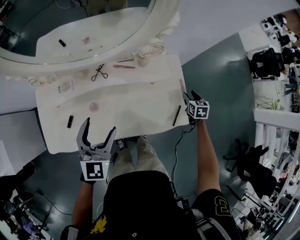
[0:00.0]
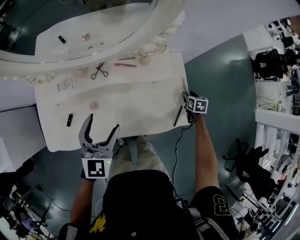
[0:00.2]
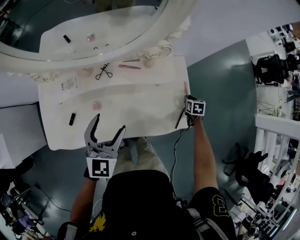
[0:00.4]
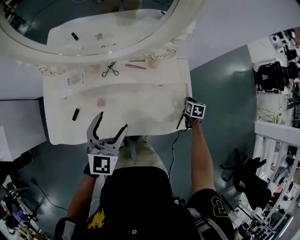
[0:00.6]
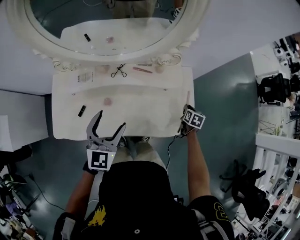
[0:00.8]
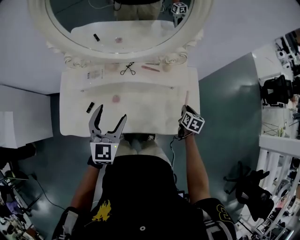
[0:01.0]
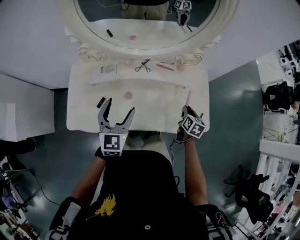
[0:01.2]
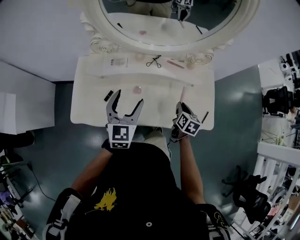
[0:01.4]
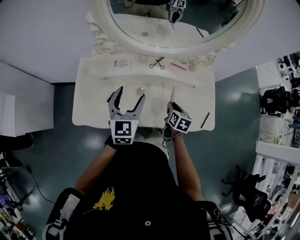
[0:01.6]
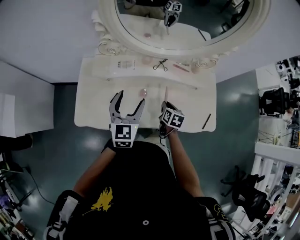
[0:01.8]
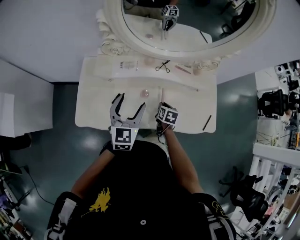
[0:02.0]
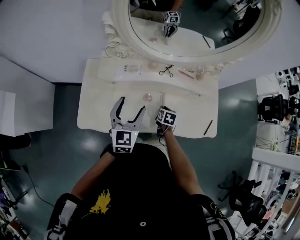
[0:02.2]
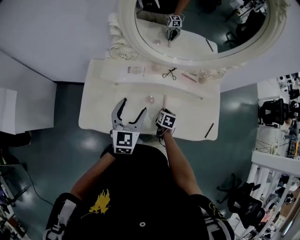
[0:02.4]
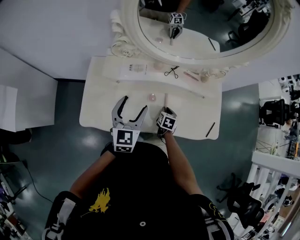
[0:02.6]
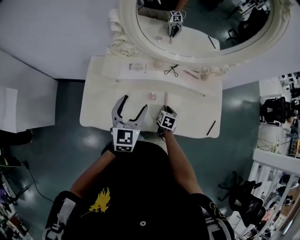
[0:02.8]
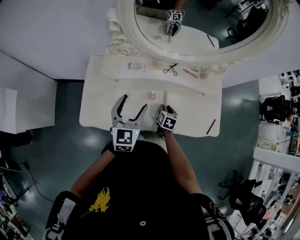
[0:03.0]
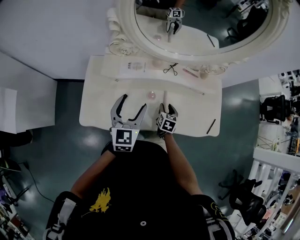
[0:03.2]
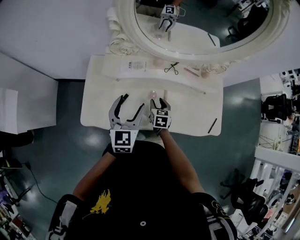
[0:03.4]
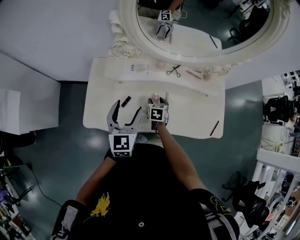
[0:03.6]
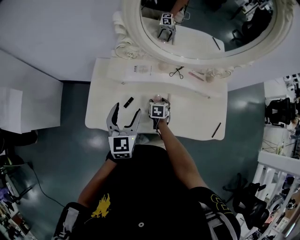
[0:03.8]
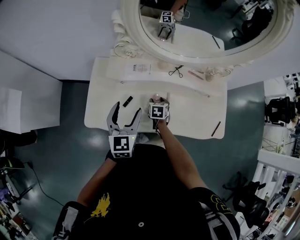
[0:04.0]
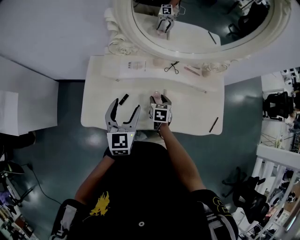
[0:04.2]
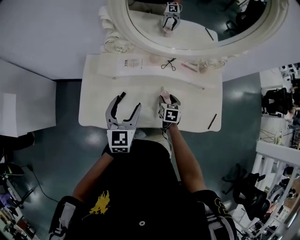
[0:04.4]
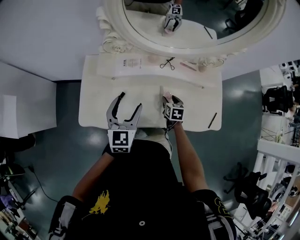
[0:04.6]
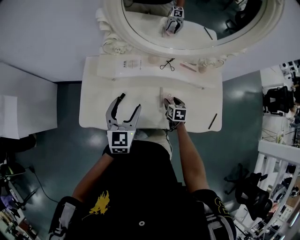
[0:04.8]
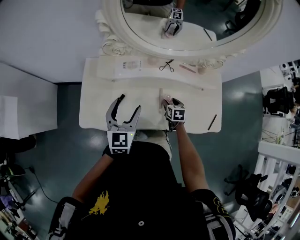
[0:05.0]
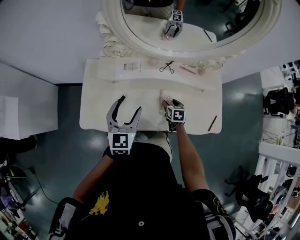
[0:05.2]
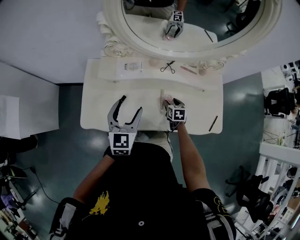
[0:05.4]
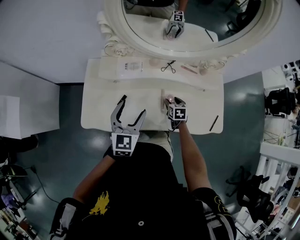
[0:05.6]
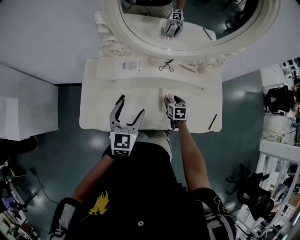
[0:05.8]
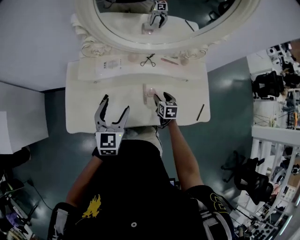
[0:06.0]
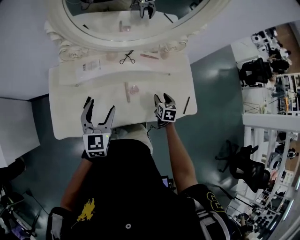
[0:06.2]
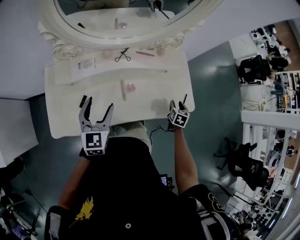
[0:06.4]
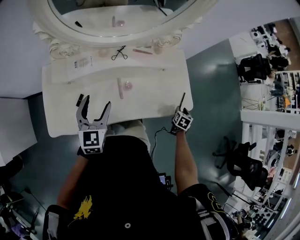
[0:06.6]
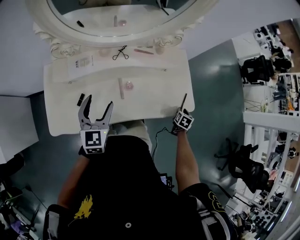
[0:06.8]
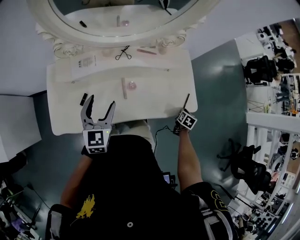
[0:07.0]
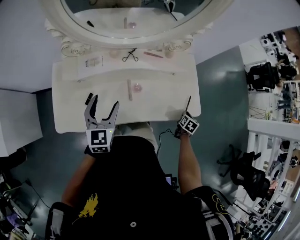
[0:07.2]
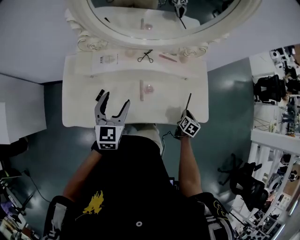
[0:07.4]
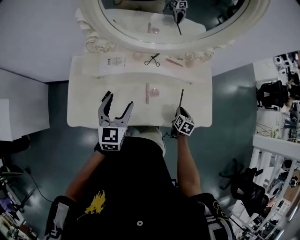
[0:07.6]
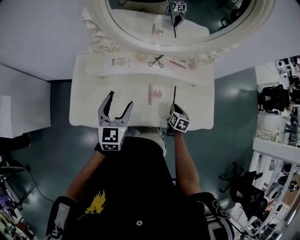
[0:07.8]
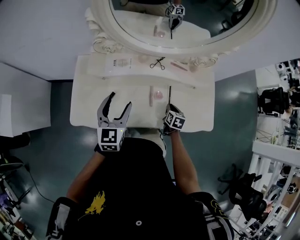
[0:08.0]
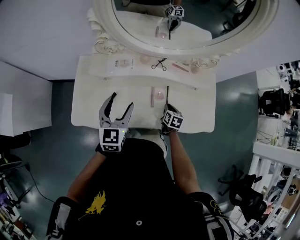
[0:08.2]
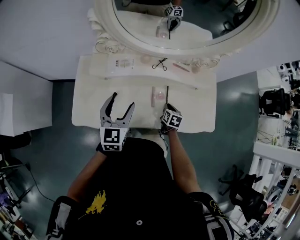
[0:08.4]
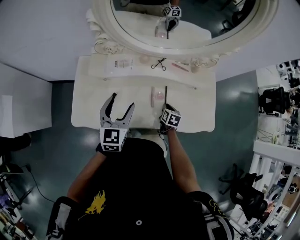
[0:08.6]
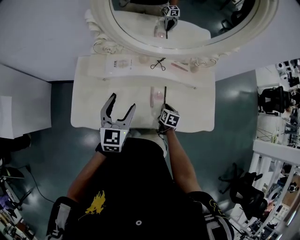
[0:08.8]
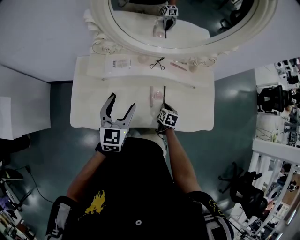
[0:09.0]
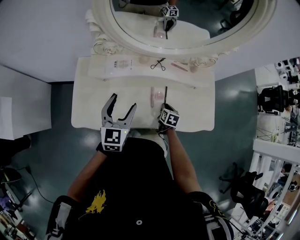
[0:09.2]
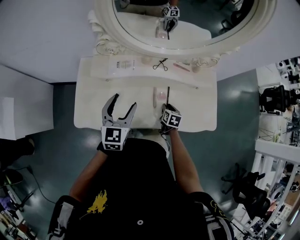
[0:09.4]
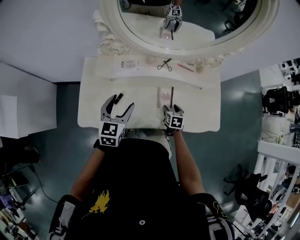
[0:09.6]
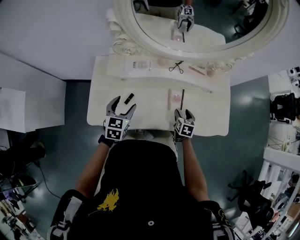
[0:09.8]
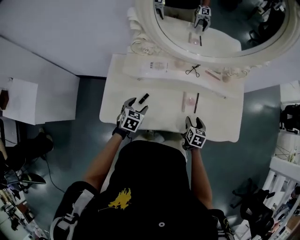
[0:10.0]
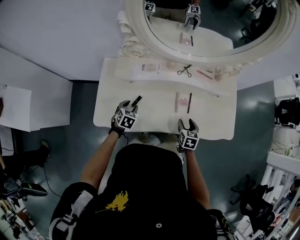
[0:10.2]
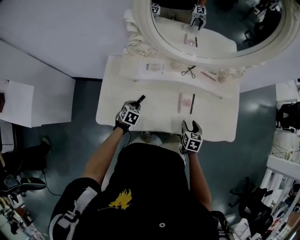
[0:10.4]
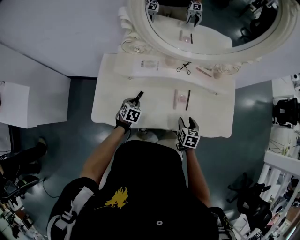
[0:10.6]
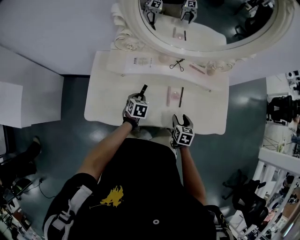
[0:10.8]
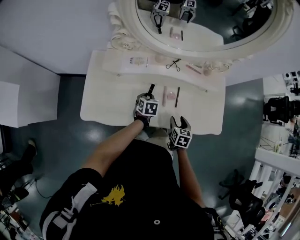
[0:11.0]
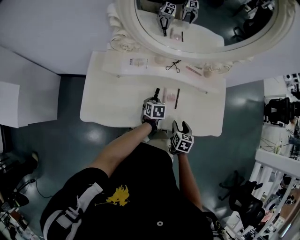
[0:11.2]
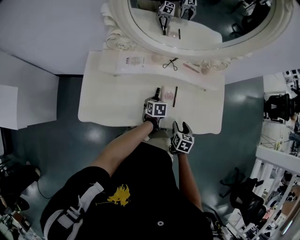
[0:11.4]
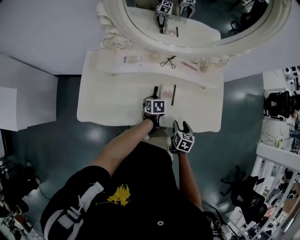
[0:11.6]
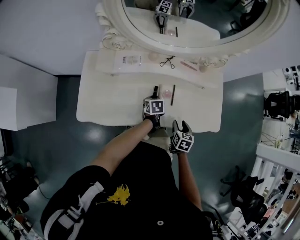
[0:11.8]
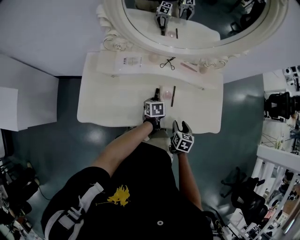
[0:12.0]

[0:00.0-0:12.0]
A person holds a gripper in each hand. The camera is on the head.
0:00.0 to 0:01.6: The left gripper moves to the left, approximately 15 cm; the right gripper is displaced to the left by approximately 35 cm, and closes.
0:01.6 to 0:03.0: The left gripper moves to the left, roughly 5 cm; the right gripper moves downward and to the left, approximately 15 cm, and opens its fingers.
0:03.0 to 0:04.4: The right gripper goes to the left and returns, some 10 cm each way.
0:04.4 to 0:06.0: The right gripper heads to the right, covering roughly 5 cm.
0:06.0 to 0:07.6: The right gripper closes its fingers.
0:07.6 to 0:09.0: The right gripper shifts some 10 cm to the left.
0:09.0 to 0:10.4: The right gripper moves backward, about 5 cm, and opens up, while the left gripper shifts about 25 cm downward, points its fingers some 40 degrees further downward, and closes up.
0:10.4 to 0:12.0: The right gripper shifts some 5 cm to the right; the left gripper goes approximately 20 cm to the right, and rotates roughly 30 degrees.

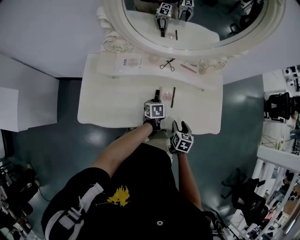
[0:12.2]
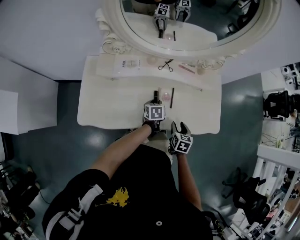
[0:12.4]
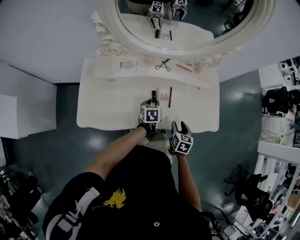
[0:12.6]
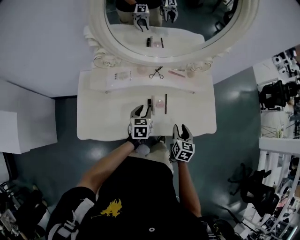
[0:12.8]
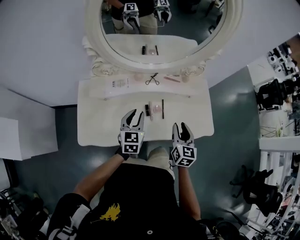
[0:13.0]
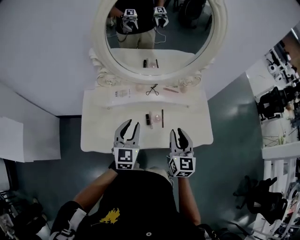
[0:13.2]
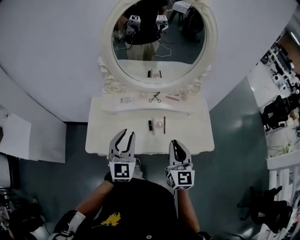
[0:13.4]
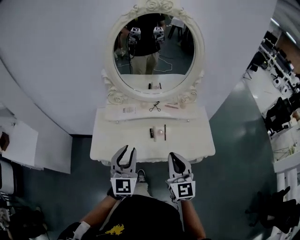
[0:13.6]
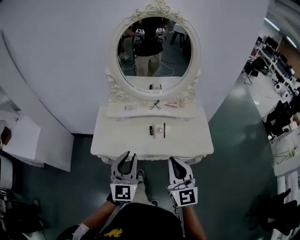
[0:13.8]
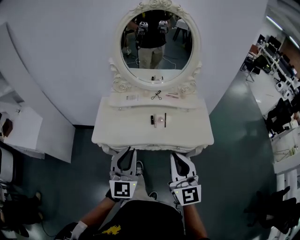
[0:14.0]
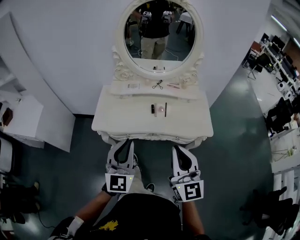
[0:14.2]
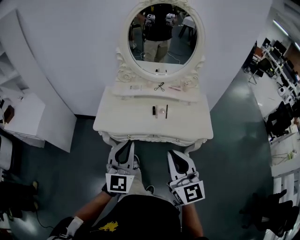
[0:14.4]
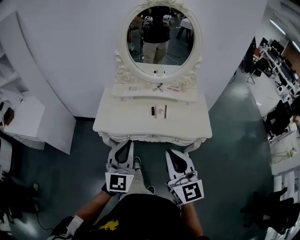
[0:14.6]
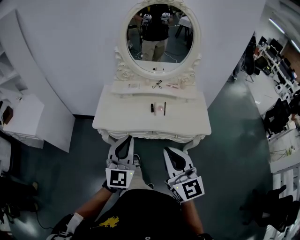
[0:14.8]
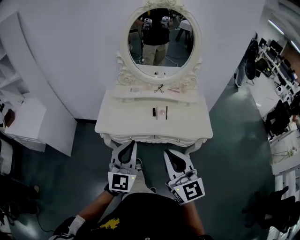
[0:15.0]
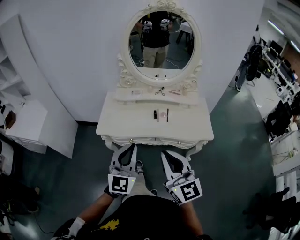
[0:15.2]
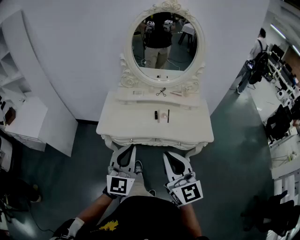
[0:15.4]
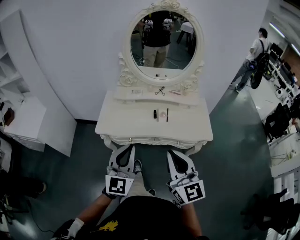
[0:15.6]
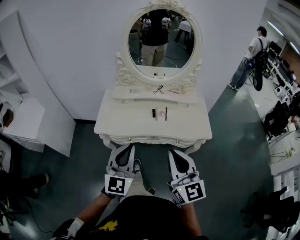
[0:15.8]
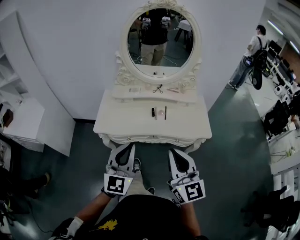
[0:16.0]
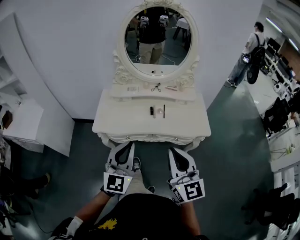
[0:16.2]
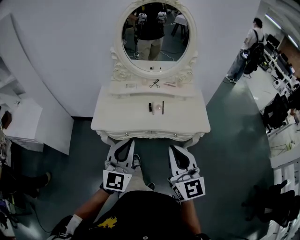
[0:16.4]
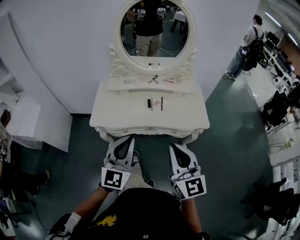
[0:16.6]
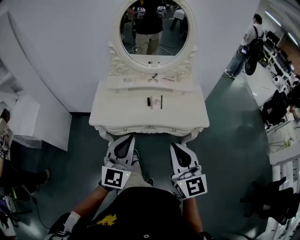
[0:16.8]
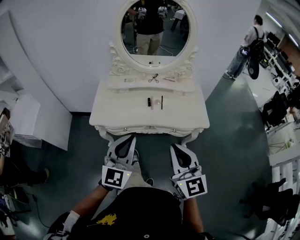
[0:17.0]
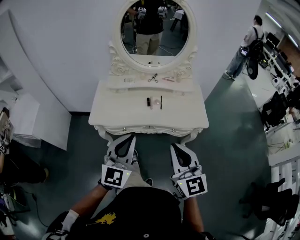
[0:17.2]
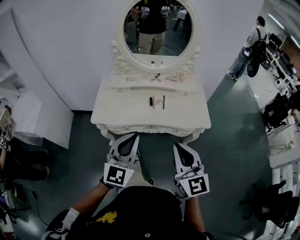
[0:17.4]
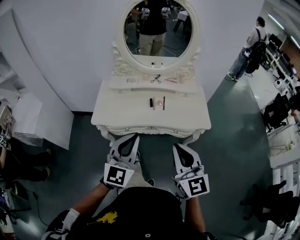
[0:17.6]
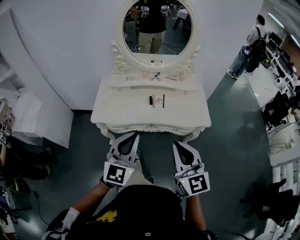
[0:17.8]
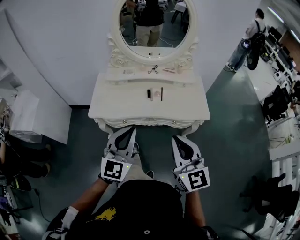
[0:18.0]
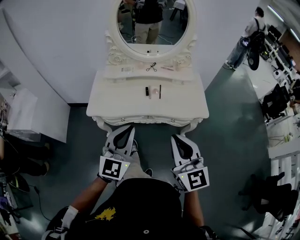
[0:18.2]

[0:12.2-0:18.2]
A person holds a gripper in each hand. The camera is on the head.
0:12.2 to 0:13.8: The grippers both shift upward and backward by some 50 cm. The left gripper angles its fingers upward, by roughly 60 degrees, while the right gripper points its fingers some 50 degrees further upward, and closes its fingers.
0:13.8 to 0:15.2: The left gripper shifts some 15 cm backward. The right gripper travels backward and to the left by some 15 cm.
0:15.2 to 0:16.6: The right gripper moves to the right, some 5 cm.
0:16.6 to 0:18.2: The grippers make only small movements.

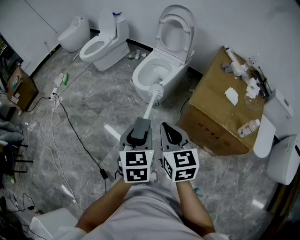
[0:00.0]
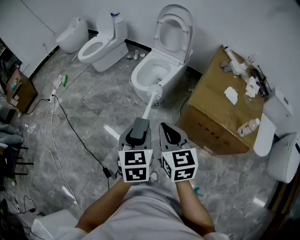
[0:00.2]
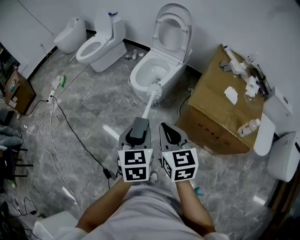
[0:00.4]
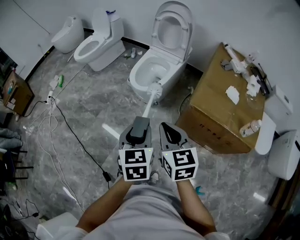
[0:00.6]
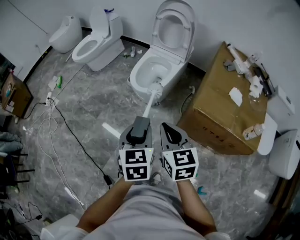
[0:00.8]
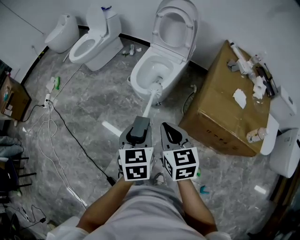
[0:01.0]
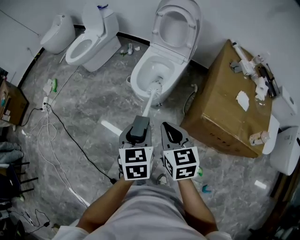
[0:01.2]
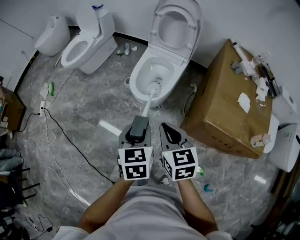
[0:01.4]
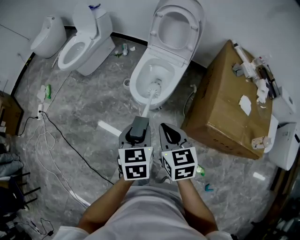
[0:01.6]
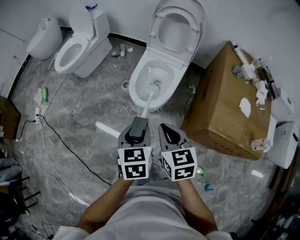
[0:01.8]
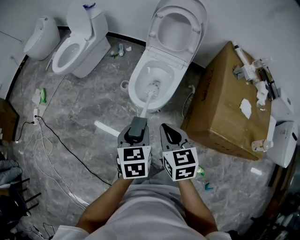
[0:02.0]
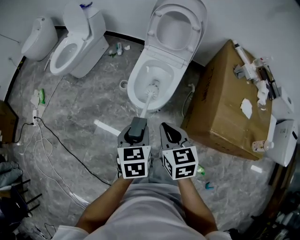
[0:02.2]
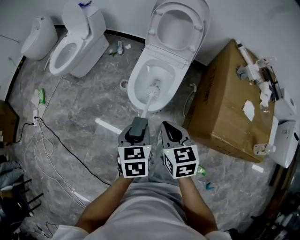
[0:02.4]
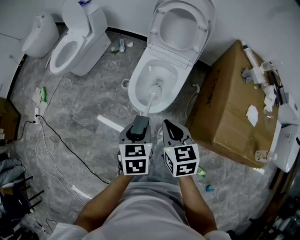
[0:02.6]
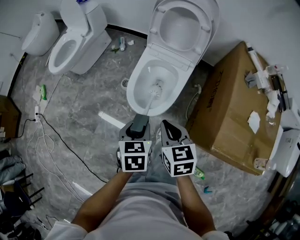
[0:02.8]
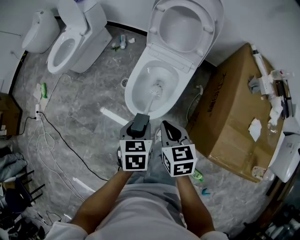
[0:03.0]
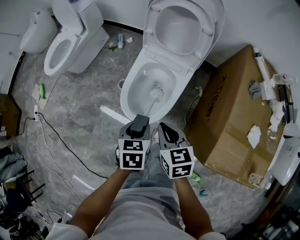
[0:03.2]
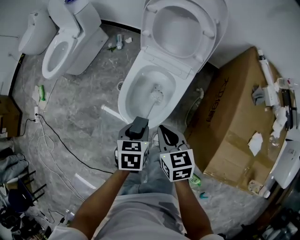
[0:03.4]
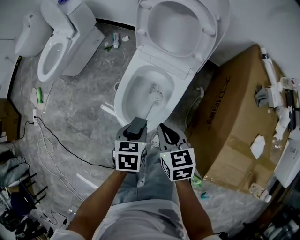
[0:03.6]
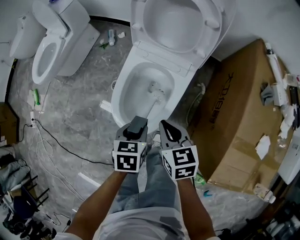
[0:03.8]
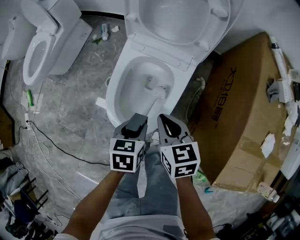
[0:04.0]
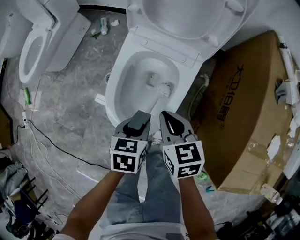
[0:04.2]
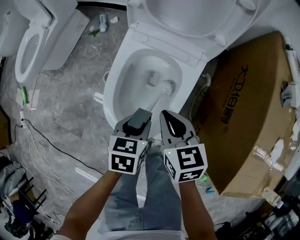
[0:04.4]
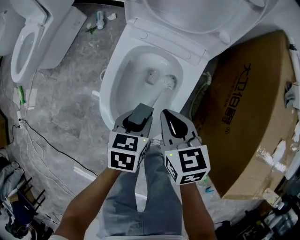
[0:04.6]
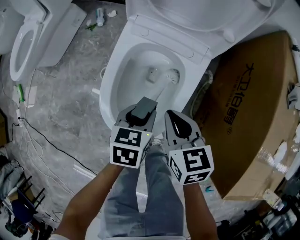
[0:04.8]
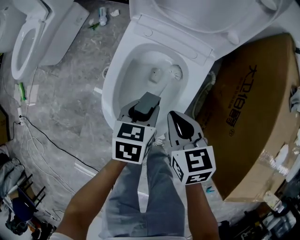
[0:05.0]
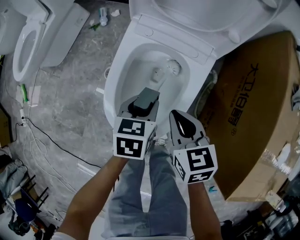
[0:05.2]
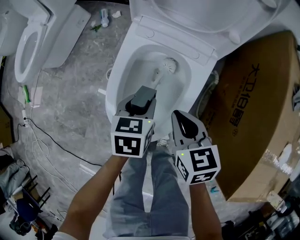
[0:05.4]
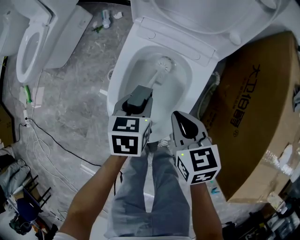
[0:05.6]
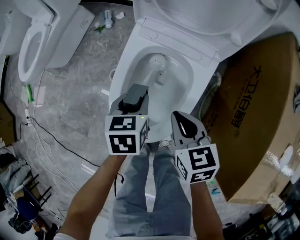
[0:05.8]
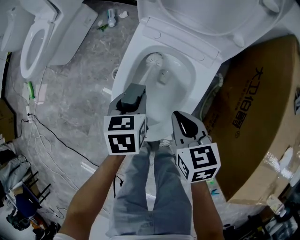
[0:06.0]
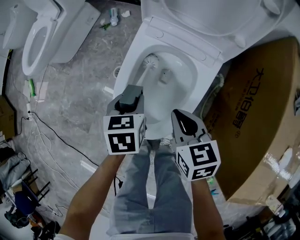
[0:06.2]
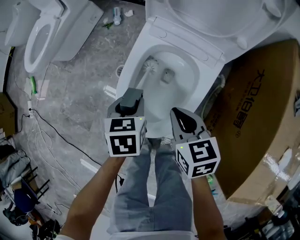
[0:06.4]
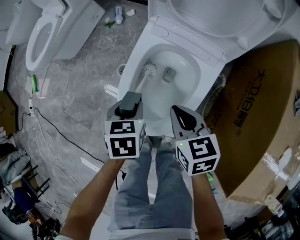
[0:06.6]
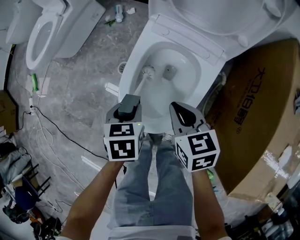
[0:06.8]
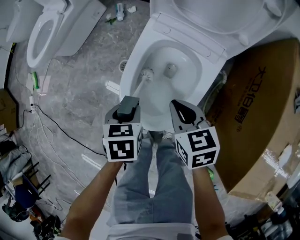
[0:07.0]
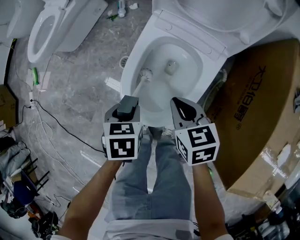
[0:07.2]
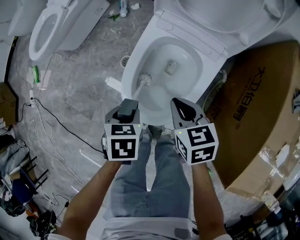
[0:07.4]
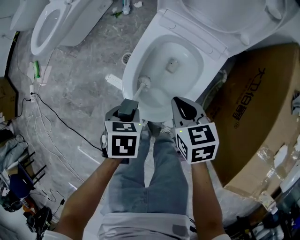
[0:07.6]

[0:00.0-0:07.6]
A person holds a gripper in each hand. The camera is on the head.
0:00.0 to 0:01.6: The two grippers go about 25 cm forward.
0:01.6 to 0:03.0: The grippers both shift forward and downward by about 20 cm.
0:03.0 to 0:04.6: The two grippers go about 25 cm downward and forward.
0:04.6 to 0:06.0: The left gripper shifts roughly 10 cm forward and to the left.
0:06.0 to 0:07.6: The left gripper travels backward and to the left by some 15 cm.
